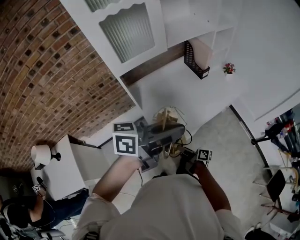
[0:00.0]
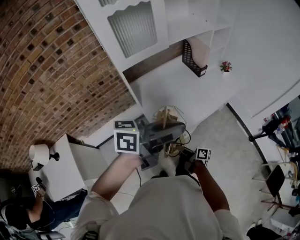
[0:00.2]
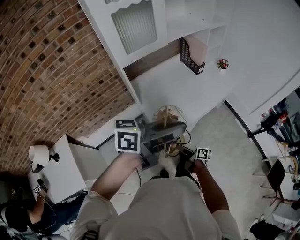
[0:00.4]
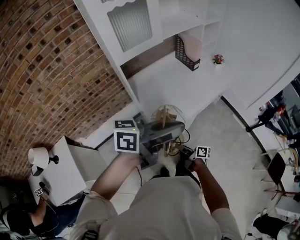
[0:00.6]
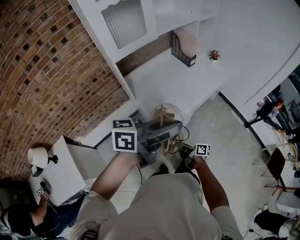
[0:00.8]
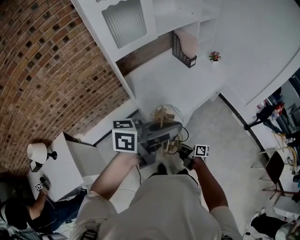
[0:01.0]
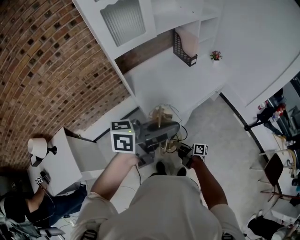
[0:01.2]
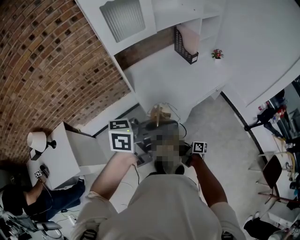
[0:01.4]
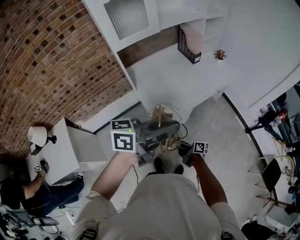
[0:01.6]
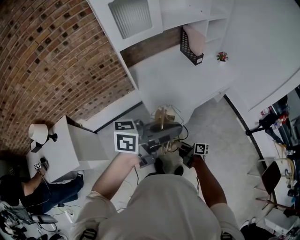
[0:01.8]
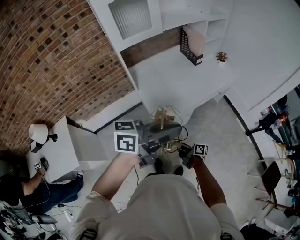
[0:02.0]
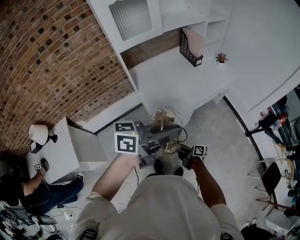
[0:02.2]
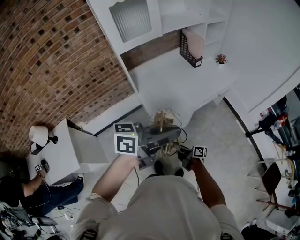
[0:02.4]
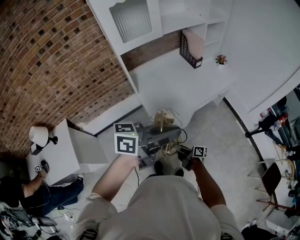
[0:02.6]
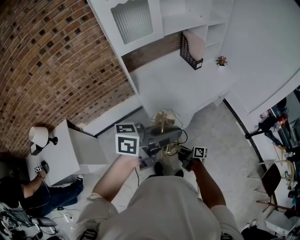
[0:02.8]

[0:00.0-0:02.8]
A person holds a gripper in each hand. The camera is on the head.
0:00.0 to 0:01.4: The left gripper heads backward, covering some 15 cm. The right gripper travels backward and to the right by approximately 15 cm.
0:01.4 to 0:02.8: There are only small adjustments of the grippers.

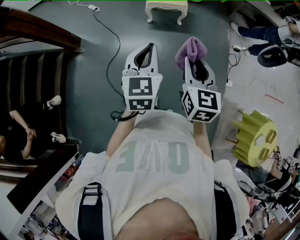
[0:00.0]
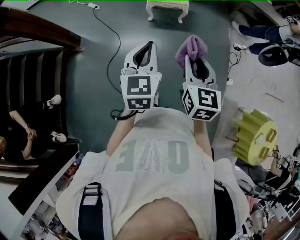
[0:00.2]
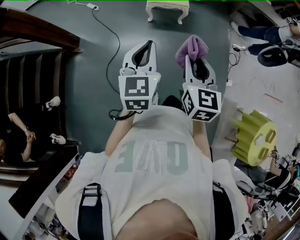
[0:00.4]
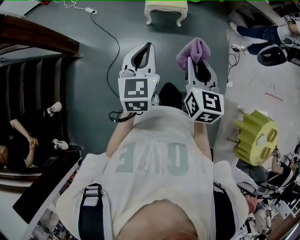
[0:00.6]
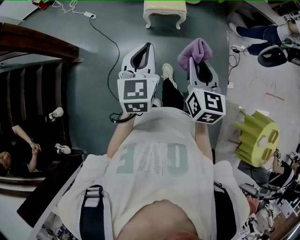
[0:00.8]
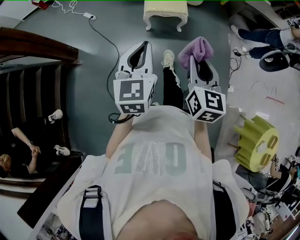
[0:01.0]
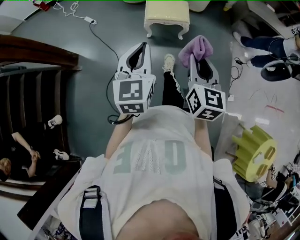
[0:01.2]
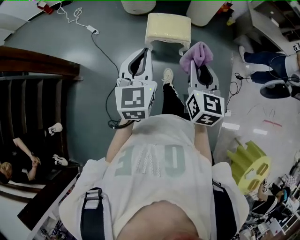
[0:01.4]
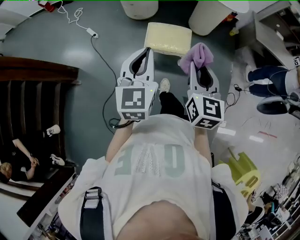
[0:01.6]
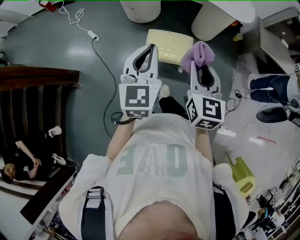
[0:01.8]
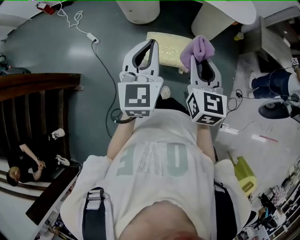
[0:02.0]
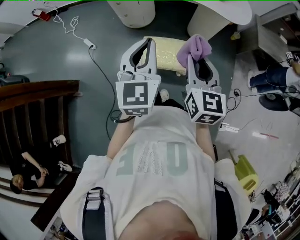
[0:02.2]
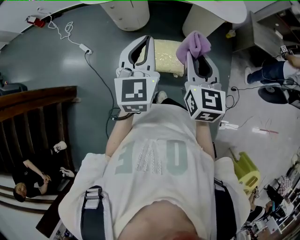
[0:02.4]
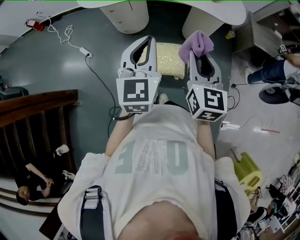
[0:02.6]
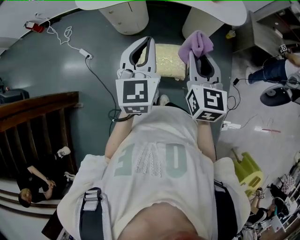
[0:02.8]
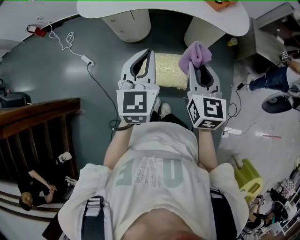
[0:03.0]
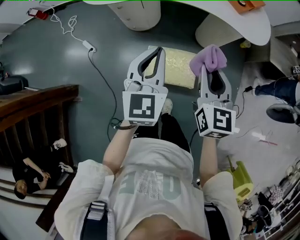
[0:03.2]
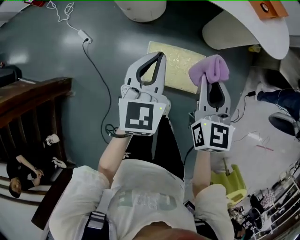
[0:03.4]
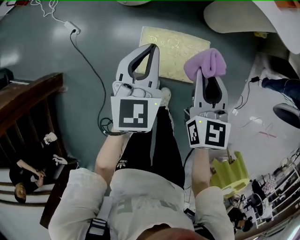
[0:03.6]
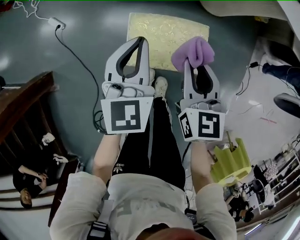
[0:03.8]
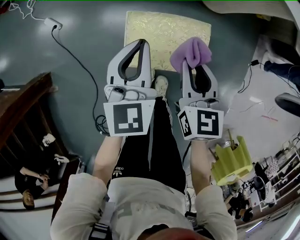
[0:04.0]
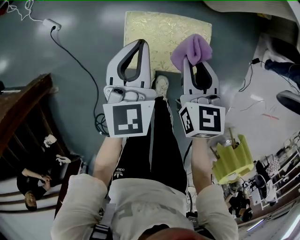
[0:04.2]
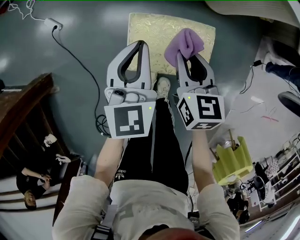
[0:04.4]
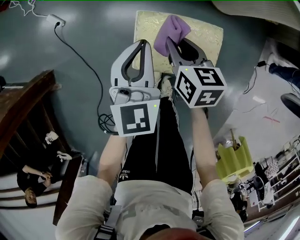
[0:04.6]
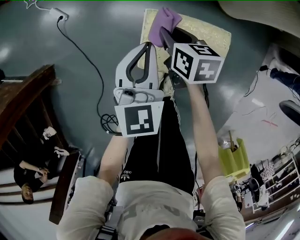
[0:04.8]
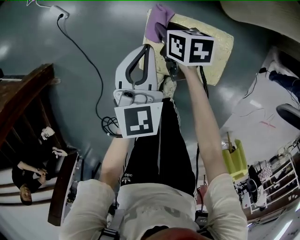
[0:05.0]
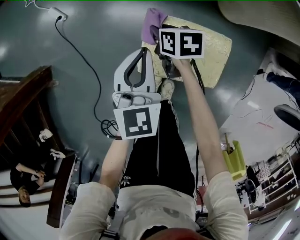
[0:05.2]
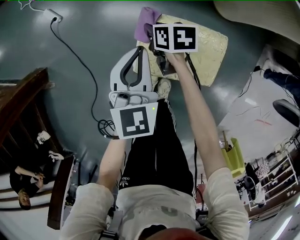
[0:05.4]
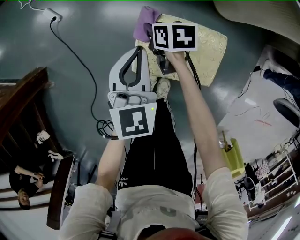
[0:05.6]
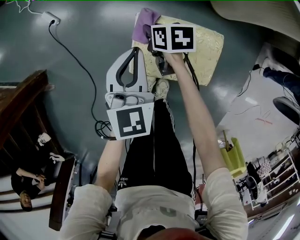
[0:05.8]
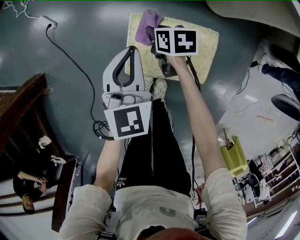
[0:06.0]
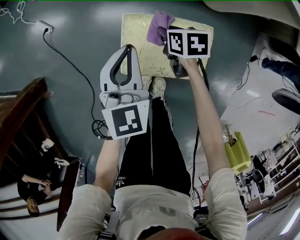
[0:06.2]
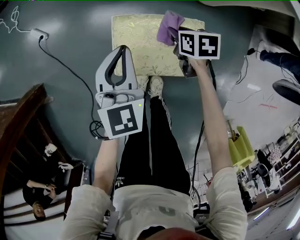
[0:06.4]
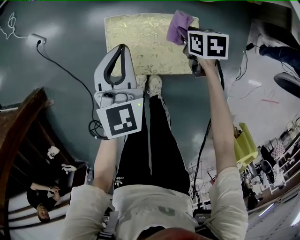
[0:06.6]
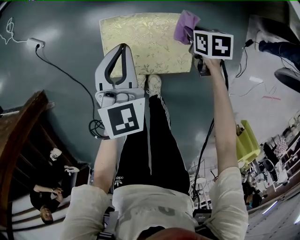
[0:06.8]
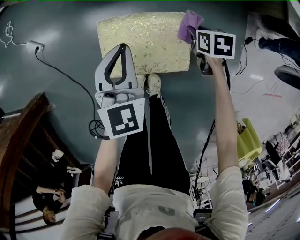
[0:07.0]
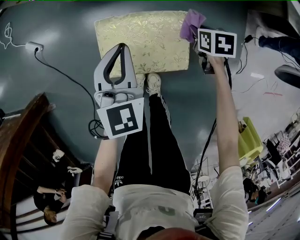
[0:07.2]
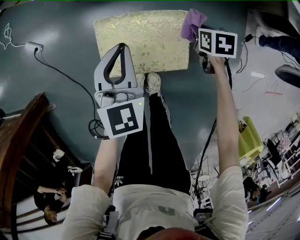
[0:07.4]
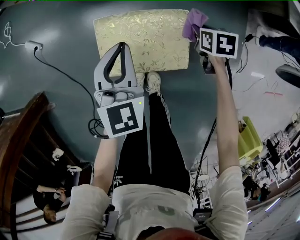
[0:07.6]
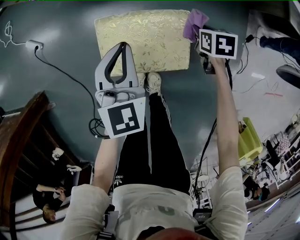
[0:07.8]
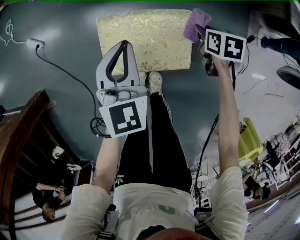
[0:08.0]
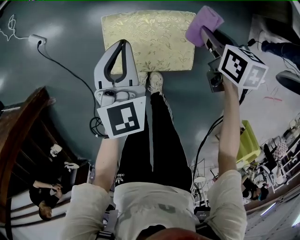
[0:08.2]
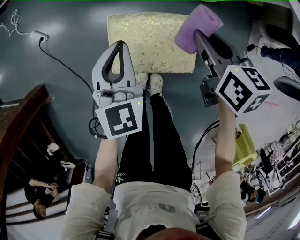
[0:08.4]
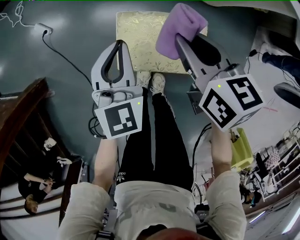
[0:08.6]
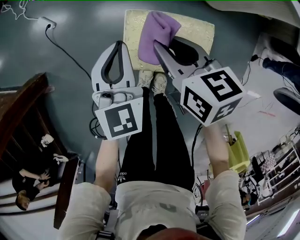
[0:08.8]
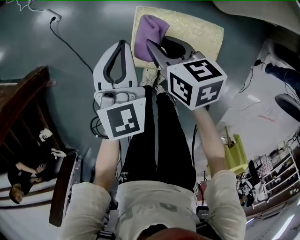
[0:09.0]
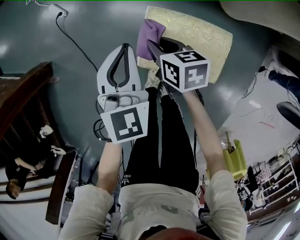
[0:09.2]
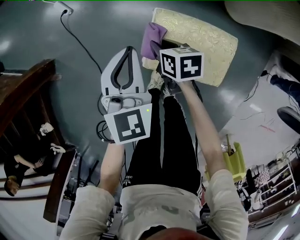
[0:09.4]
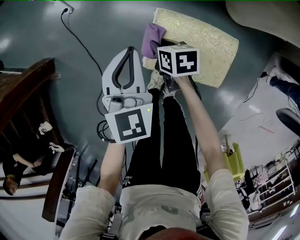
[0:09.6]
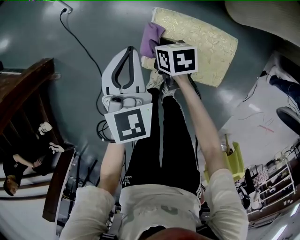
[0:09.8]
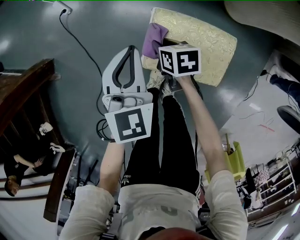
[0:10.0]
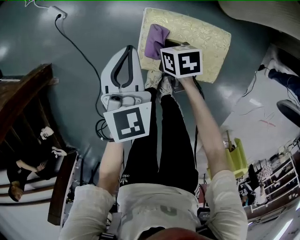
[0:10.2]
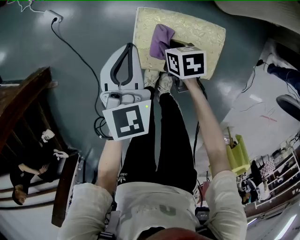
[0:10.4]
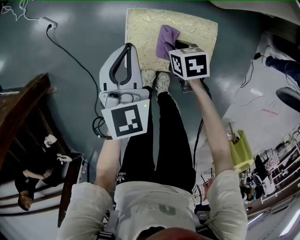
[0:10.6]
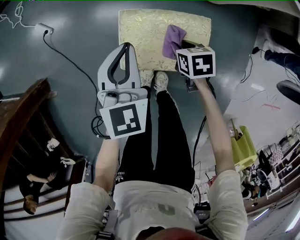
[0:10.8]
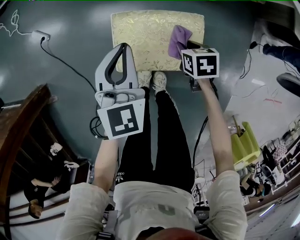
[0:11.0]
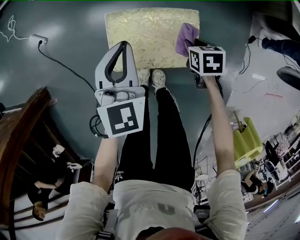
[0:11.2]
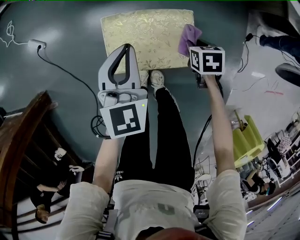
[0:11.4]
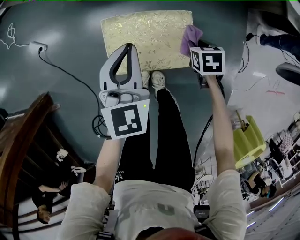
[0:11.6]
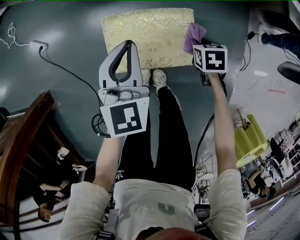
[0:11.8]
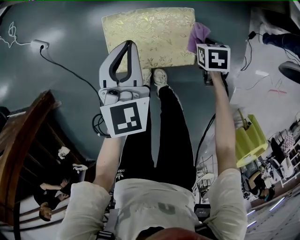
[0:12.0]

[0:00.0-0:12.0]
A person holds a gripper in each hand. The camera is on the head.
0:00.0 to 0:01.6: The pair of grippers is taken forward, roughly 40 cm.
0:01.6 to 0:03.0: The two grippers go approximately 25 cm forward.
0:03.0 to 0:04.4: Both grippers travel together downward, about 35 cm. The right gripper turns by roughly 20 degrees.
0:04.4 to 0:06.0: The right gripper travels downward and forward by roughly 20 cm, and changes its angle by roughly 30 degrees; the left gripper ends up some 5 cm from where it was.
0:06.0 to 0:07.6: The left gripper travels to the right by some 10 cm; the right gripper heads to the right, covering some 30 cm, and turns by approximately 20 degrees.
0:07.6 to 0:09.0: The left gripper goes some 10 cm to the left. The right gripper shifts approximately 35 cm to the left and upward, and points its fingers roughly 30 degrees further upward.
0:09.0 to 0:10.4: The right gripper shifts about 15 cm downward.
0:10.4 to 0:12.0: The left gripper ends up some 10 cm from where it was. The right gripper changes place by approximately 25 cm, and changes its angle by some 30 degrees.

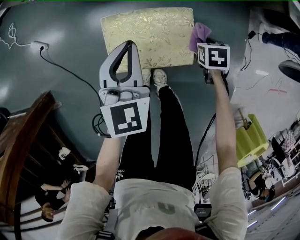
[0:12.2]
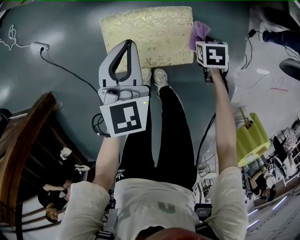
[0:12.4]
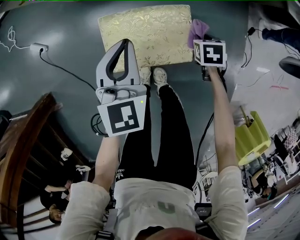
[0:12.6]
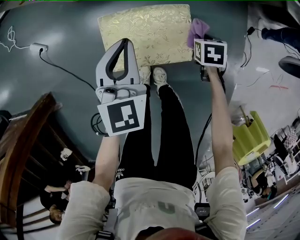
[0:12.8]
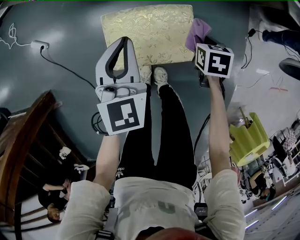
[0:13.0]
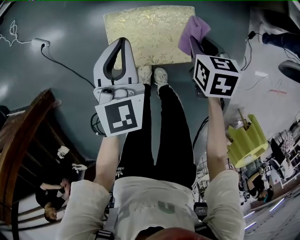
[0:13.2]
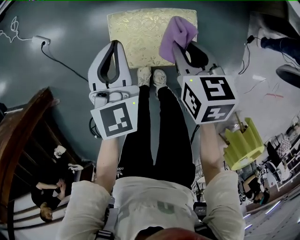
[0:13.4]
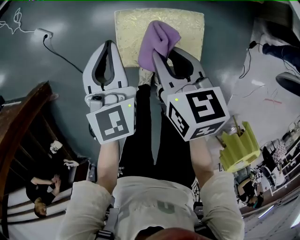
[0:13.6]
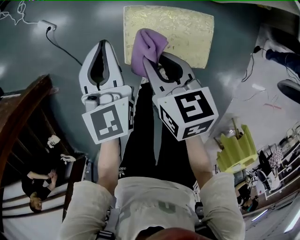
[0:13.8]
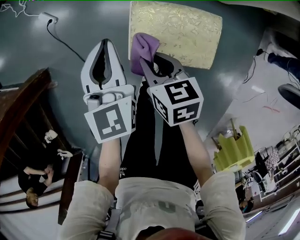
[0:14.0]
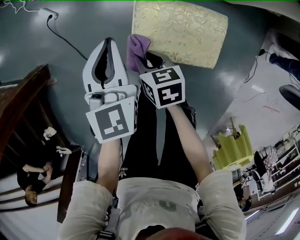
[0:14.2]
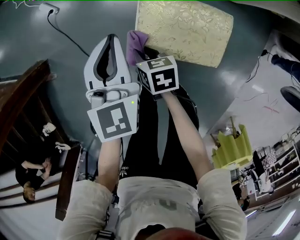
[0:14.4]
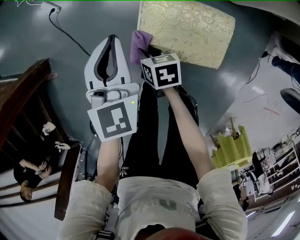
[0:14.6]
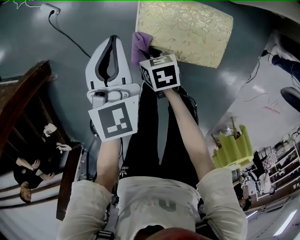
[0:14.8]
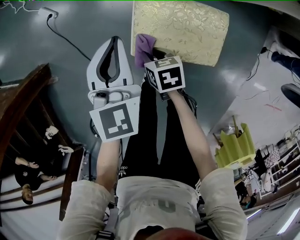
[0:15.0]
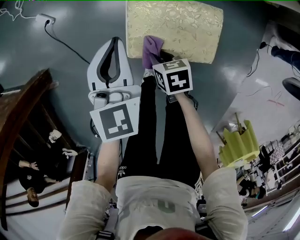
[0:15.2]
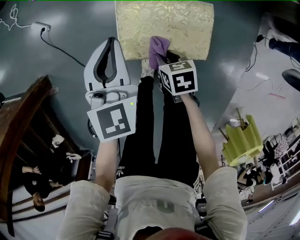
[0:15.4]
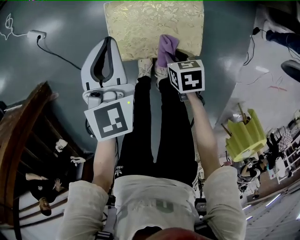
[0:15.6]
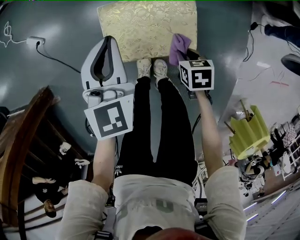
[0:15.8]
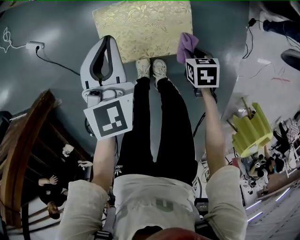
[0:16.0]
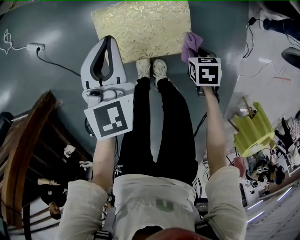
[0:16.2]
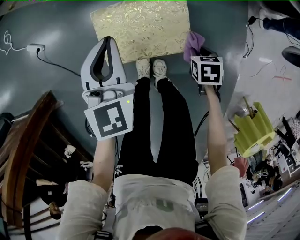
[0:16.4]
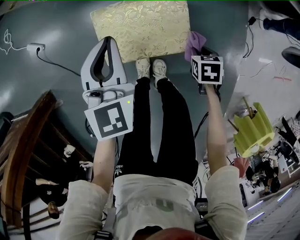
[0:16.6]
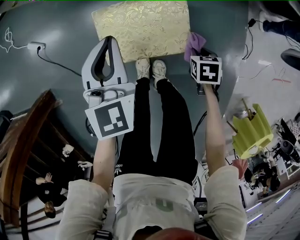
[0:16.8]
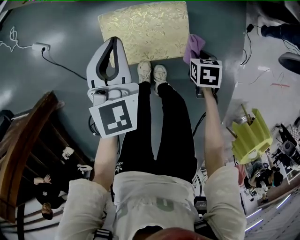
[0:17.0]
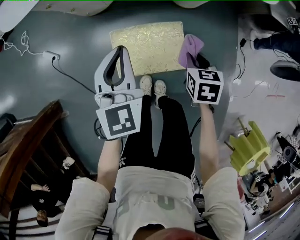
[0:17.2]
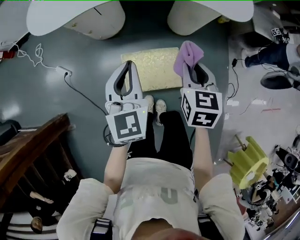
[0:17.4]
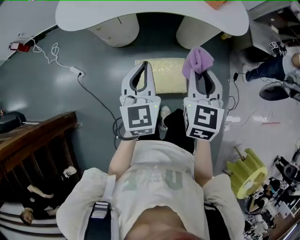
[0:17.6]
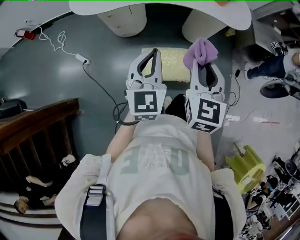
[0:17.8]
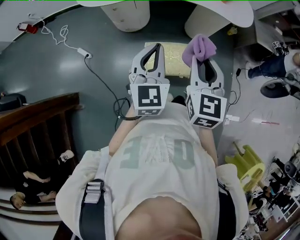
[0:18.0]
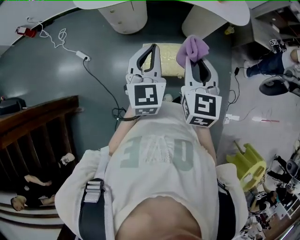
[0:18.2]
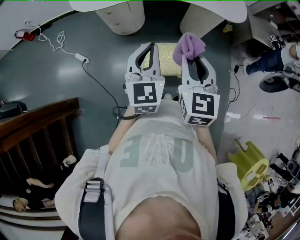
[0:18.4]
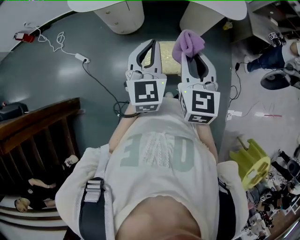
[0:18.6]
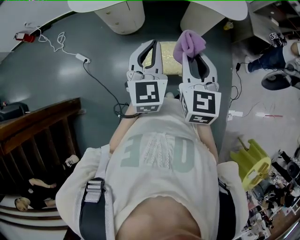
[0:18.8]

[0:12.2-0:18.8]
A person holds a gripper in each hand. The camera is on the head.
0:12.2 to 0:13.8: The right gripper shifts by approximately 35 cm, and angles its fingers upward, by approximately 40 degrees; the left gripper ends up some 15 cm from where it was.
0:13.8 to 0:15.4: The right gripper shifts about 20 cm downward and backward, and turns by approximately 20 degrees.
0:15.4 to 0:17.2: The left gripper is displaced upward by roughly 10 cm, while the right gripper shifts by some 25 cm, and swivels roughly 30 degrees.
0:17.2 to 0:18.8: The left gripper heads upward and backward, covering approximately 25 cm. Meanwhile the right gripper shifts some 40 cm upward, and points its fingers about 40 degrees further upward.

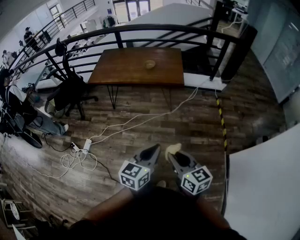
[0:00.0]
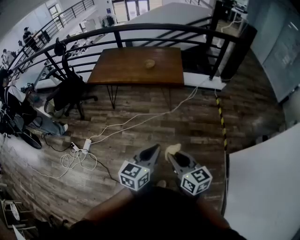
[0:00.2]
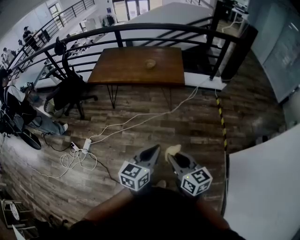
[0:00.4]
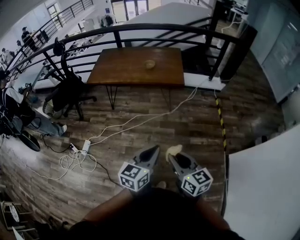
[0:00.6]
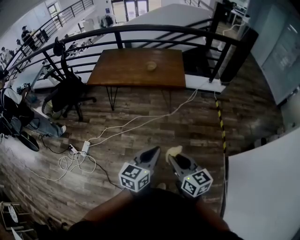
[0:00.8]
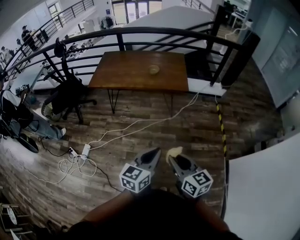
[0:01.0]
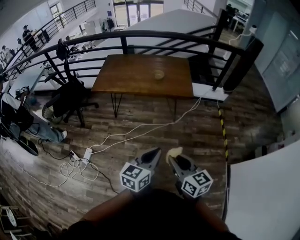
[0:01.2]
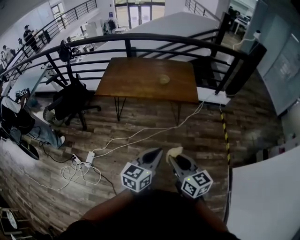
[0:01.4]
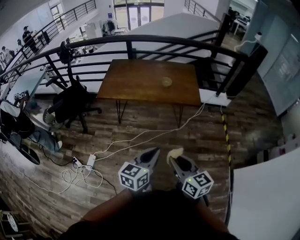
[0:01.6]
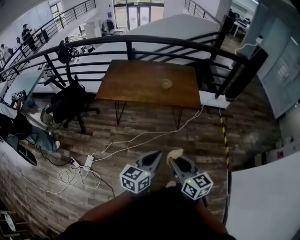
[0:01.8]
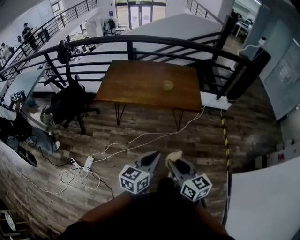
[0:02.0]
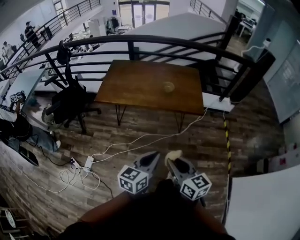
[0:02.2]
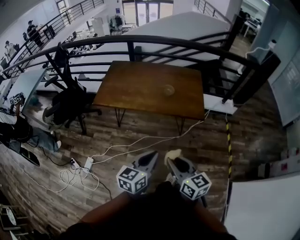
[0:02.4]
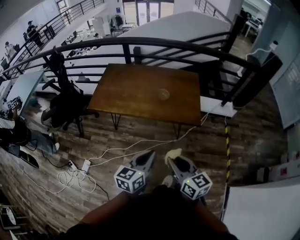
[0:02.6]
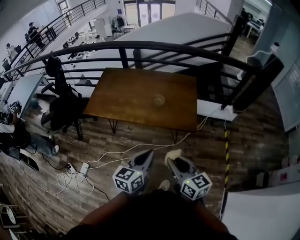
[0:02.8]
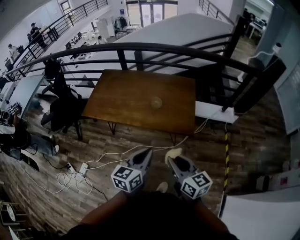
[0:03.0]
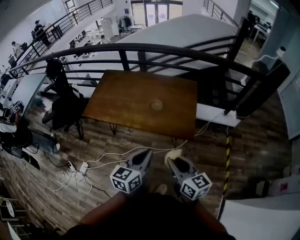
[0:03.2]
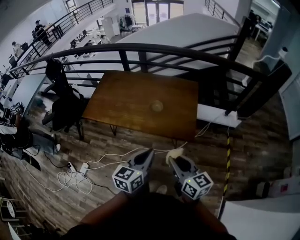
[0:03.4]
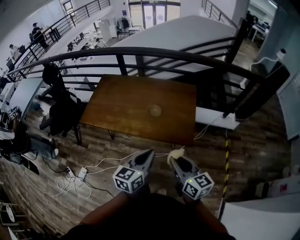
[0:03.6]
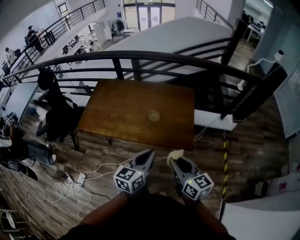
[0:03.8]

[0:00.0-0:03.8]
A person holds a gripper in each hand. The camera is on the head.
0:00.0 to 0:01.2: The grippers both shift to the left and forward by approximately 15 cm.
0:01.2 to 0:02.6: Both grippers move forward, approximately 25 cm.
0:02.6 to 0:03.8: Both grippers move forward and to the right, roughly 20 cm.
